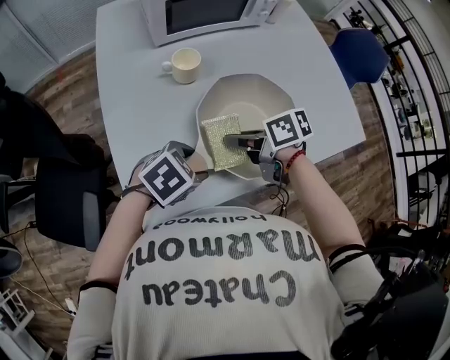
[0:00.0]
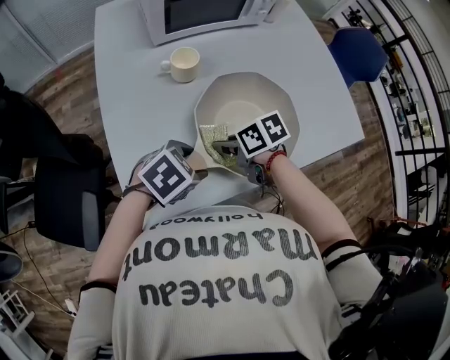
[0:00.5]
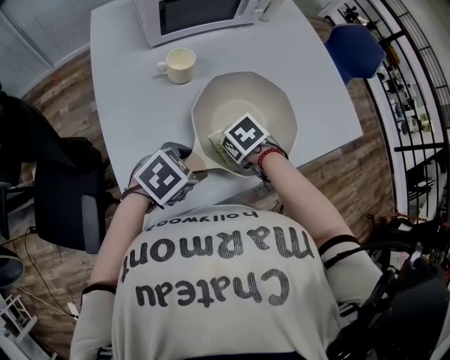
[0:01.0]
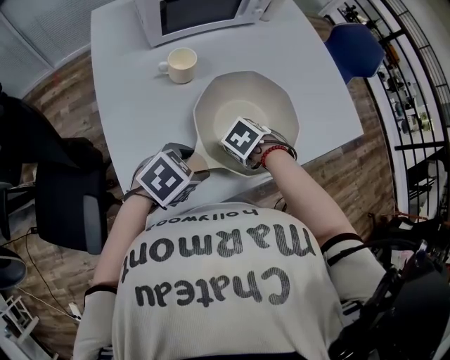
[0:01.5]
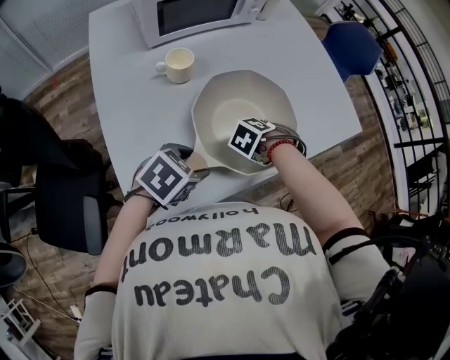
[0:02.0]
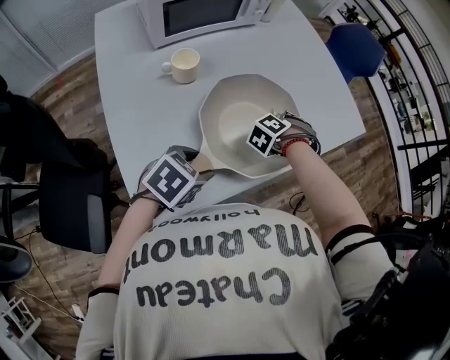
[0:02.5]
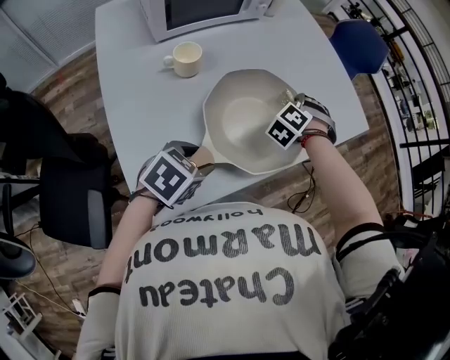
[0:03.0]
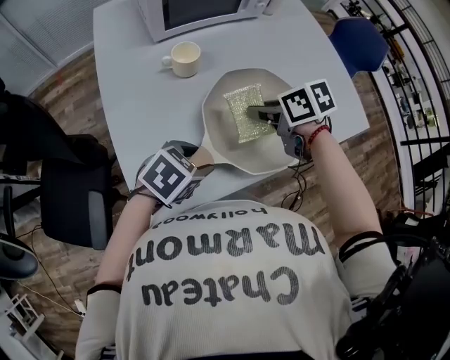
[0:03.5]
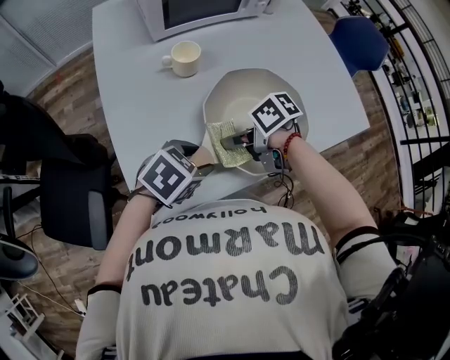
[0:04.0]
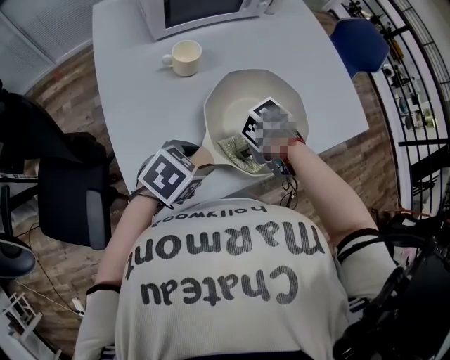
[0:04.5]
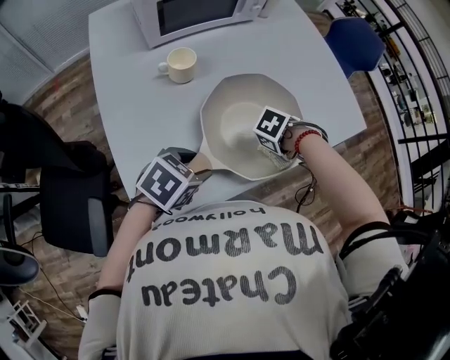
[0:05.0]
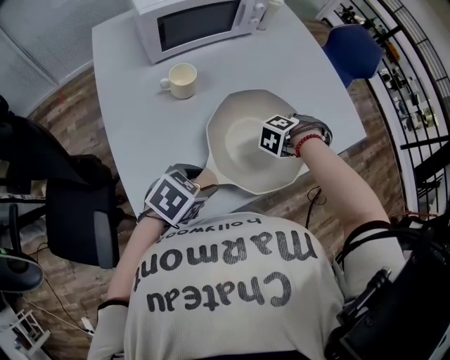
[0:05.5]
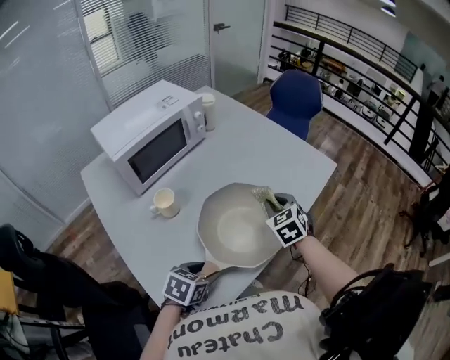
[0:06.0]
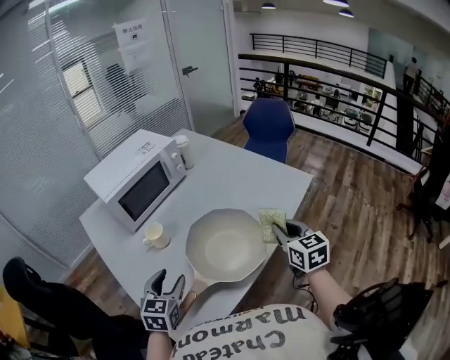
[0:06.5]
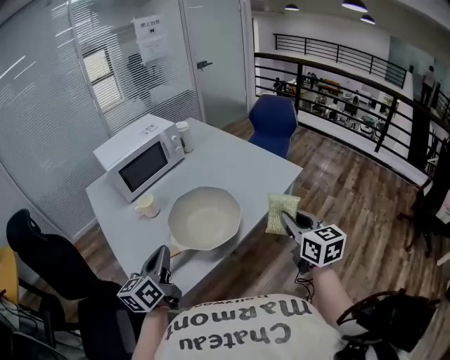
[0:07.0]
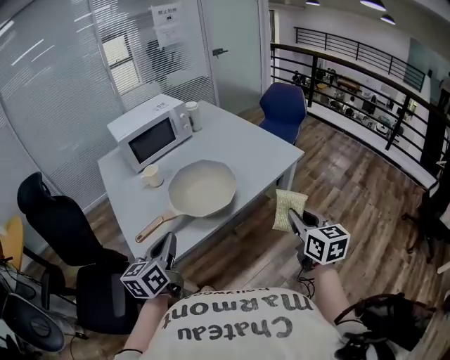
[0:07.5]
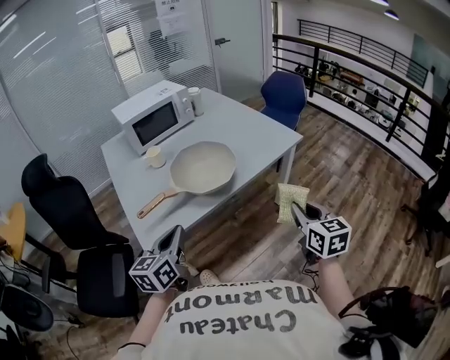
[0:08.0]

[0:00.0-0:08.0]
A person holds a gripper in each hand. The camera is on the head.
6.0 to 8.0 s: The left gripper moves roughly 30 cm, tilts its fingers about 40 degrees upward, and closes its fingers.

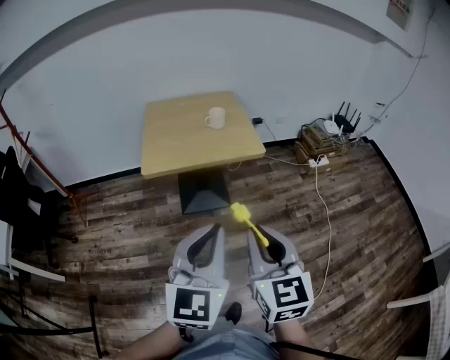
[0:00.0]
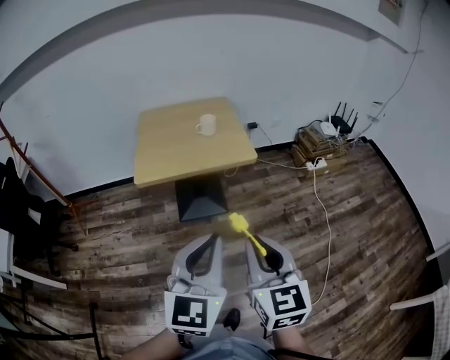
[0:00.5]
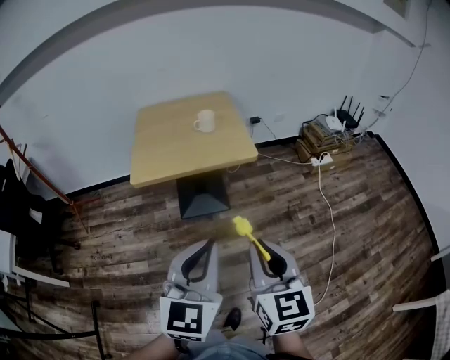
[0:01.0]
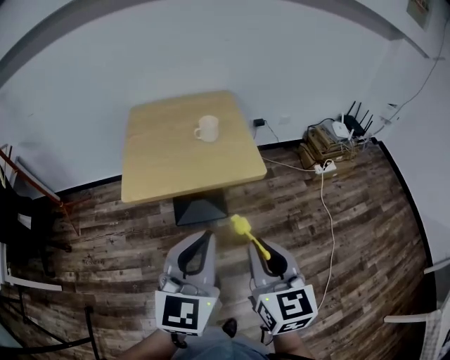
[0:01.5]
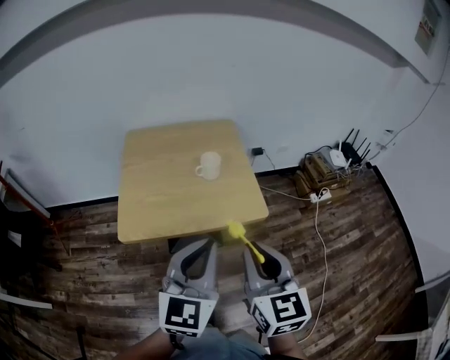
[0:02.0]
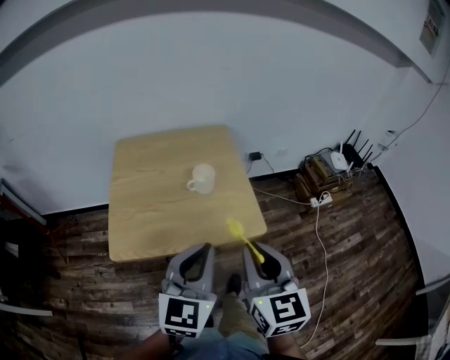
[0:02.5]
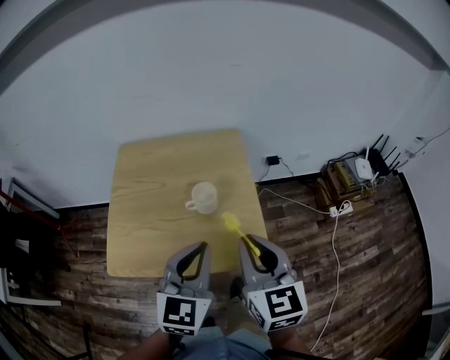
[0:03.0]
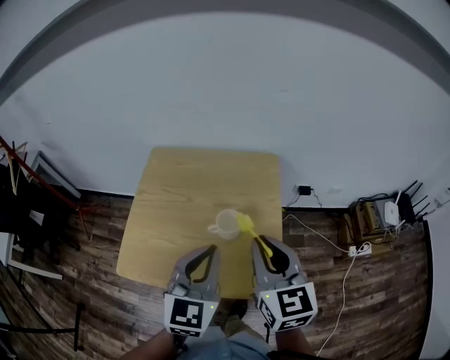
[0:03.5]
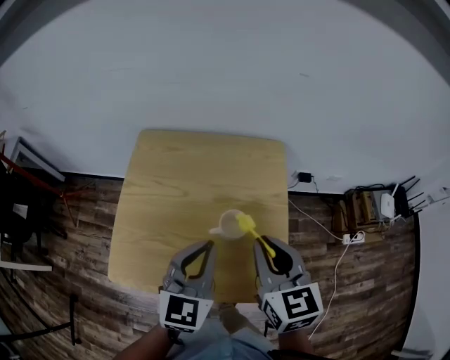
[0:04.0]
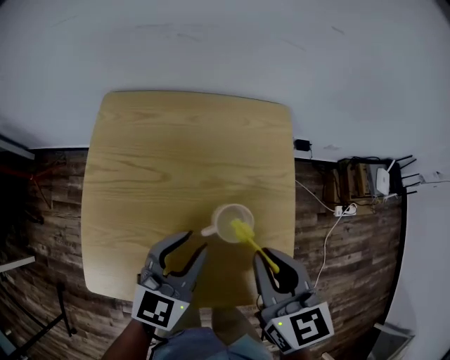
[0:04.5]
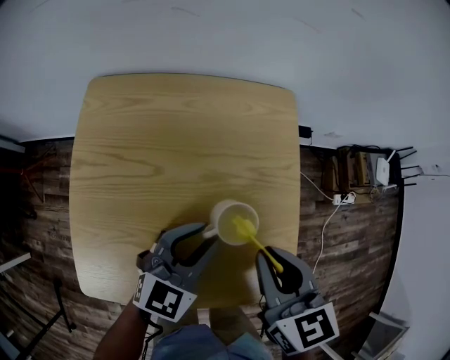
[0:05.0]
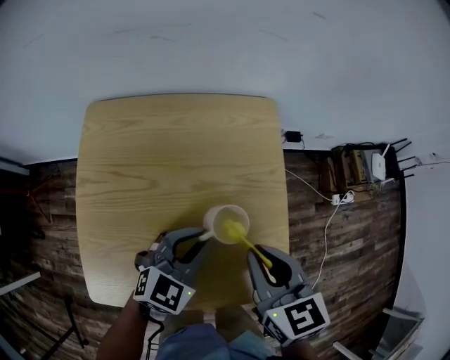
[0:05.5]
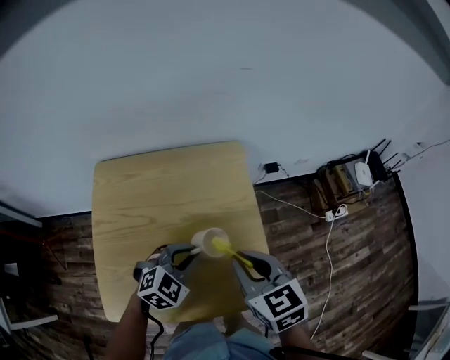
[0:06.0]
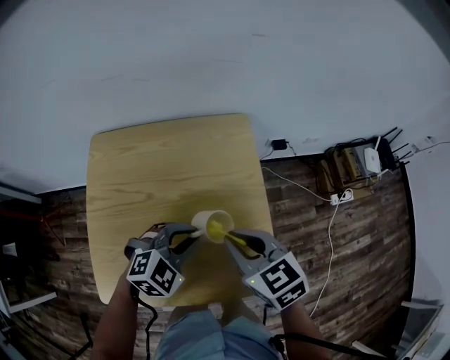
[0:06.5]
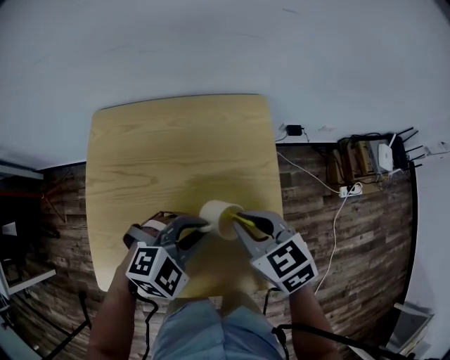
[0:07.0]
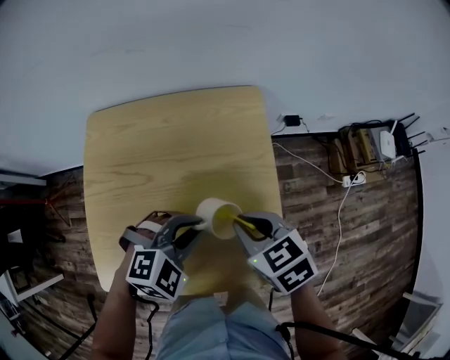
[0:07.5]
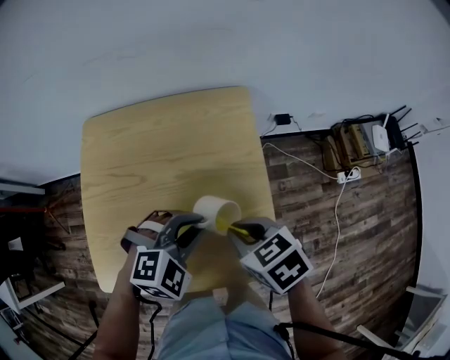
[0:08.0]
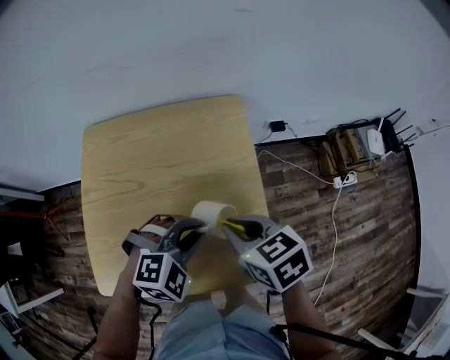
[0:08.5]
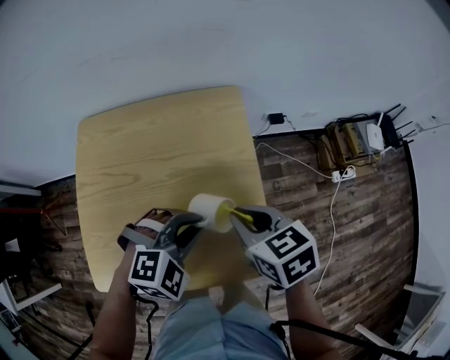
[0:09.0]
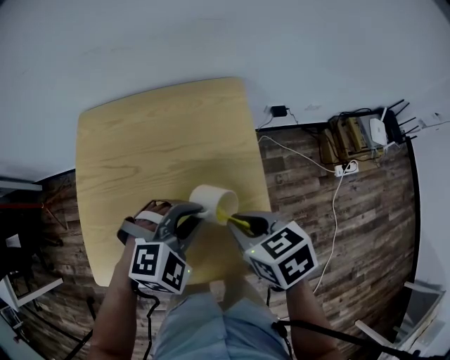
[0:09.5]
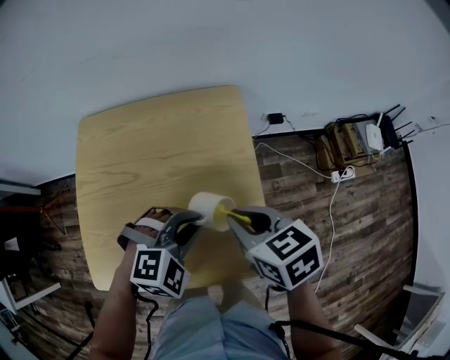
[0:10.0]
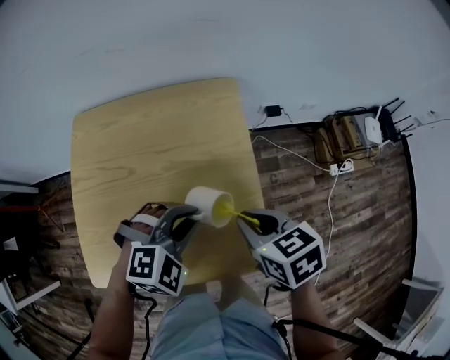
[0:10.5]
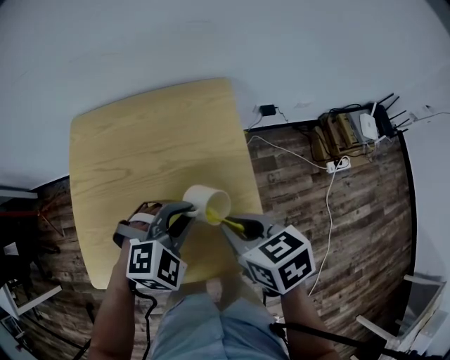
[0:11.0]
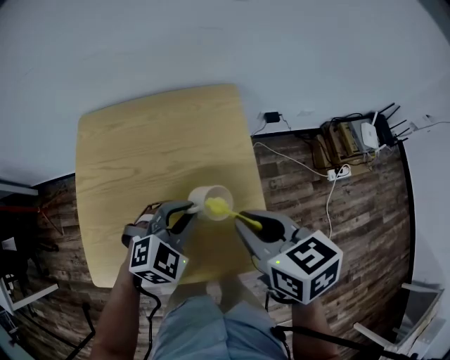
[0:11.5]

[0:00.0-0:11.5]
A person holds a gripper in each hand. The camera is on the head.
0.0 to 2.0 s: The two grippers go roughly 30 cm forward.
2.0 to 4.0 s: Both grippers travel together forward, roughly 35 cm. The right gripper changes its angle by approximately 20 degrees.
4.0 to 6.0 s: The left gripper heads downward, covering some 15 cm, and turns by roughly 50 degrees.
6.0 to 7.5 s: The right gripper heads downward, covering roughly 10 cm, and turns by roughly 20 degrees.
7.5 to 9.5 s: The grippers move only a little.
9.5 to 11.5 s: The right gripper moves upward, roughly 10 cm.

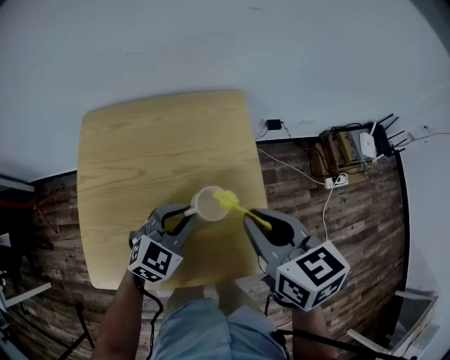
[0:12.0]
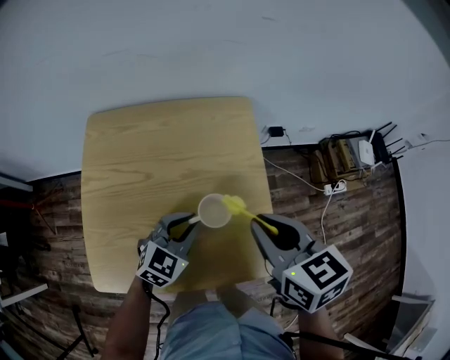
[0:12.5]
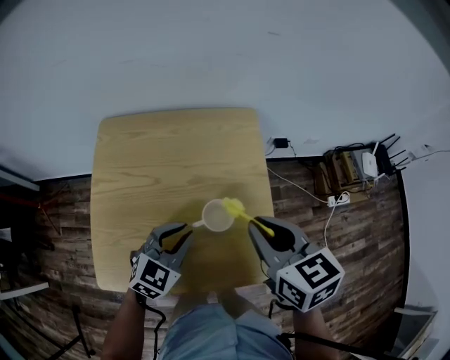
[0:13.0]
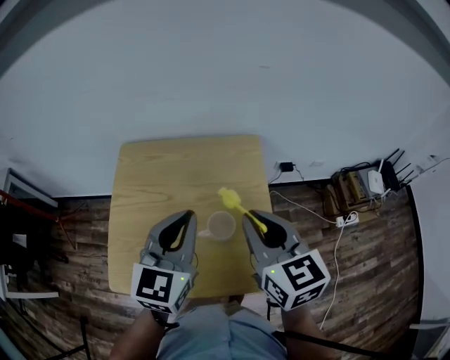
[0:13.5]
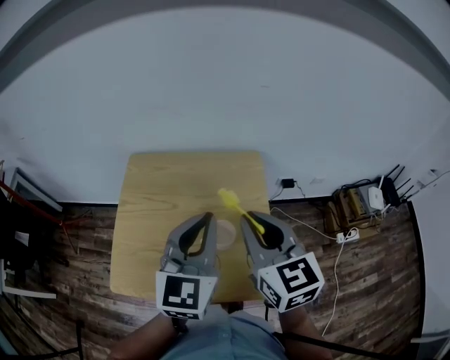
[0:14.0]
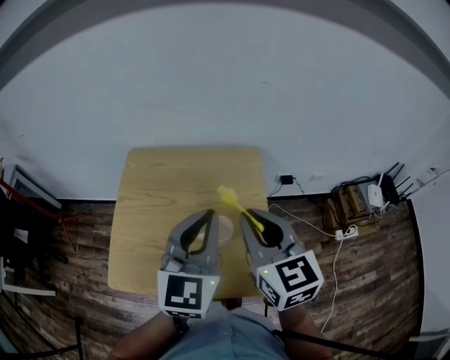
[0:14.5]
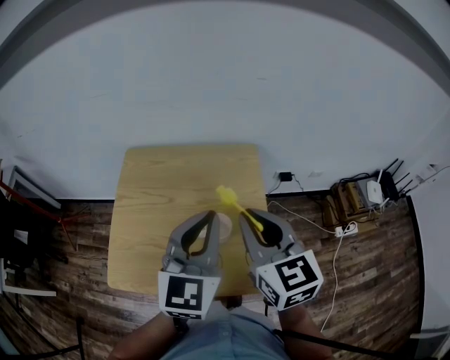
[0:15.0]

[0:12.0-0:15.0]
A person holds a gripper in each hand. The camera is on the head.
12.0 to 13.5 s: The left gripper moves upward, about 20 cm, and changes its angle by about 40 degrees. The right gripper moves upward, approximately 5 cm.
13.5 to 15.0 s: The left gripper heads to the right, covering about 5 cm.

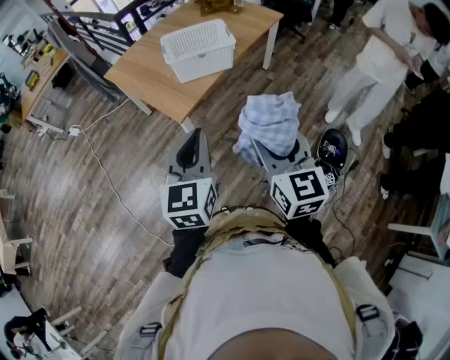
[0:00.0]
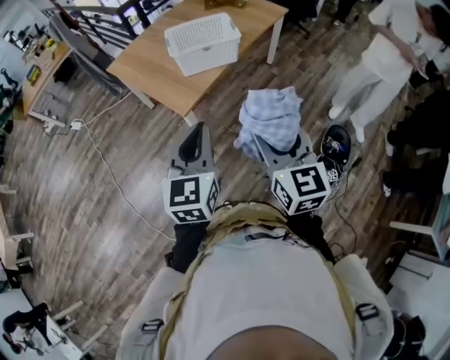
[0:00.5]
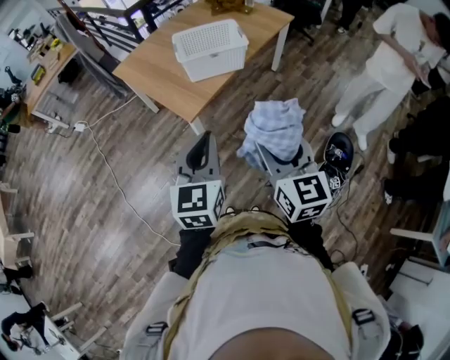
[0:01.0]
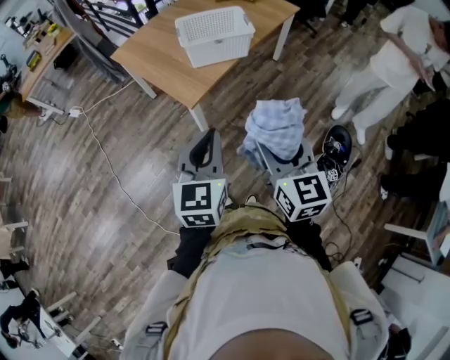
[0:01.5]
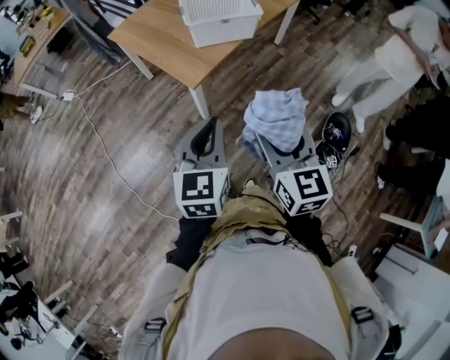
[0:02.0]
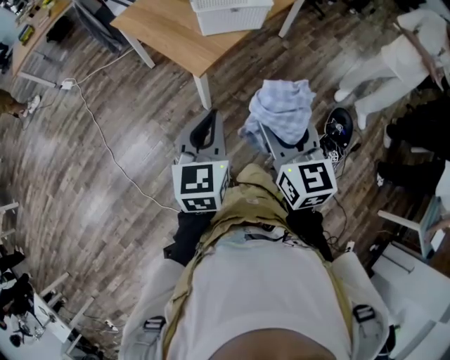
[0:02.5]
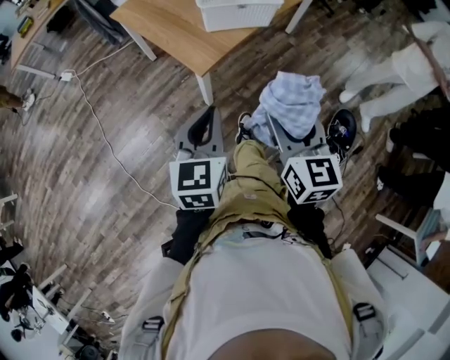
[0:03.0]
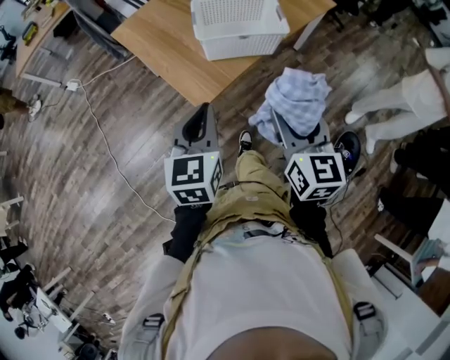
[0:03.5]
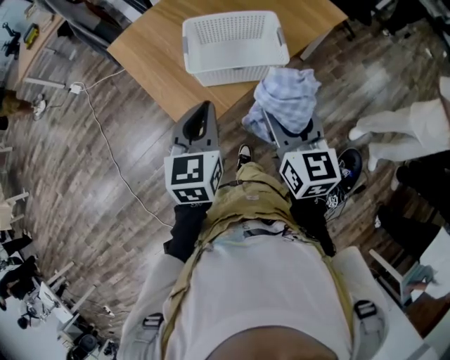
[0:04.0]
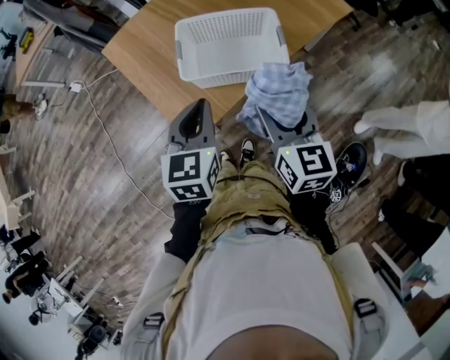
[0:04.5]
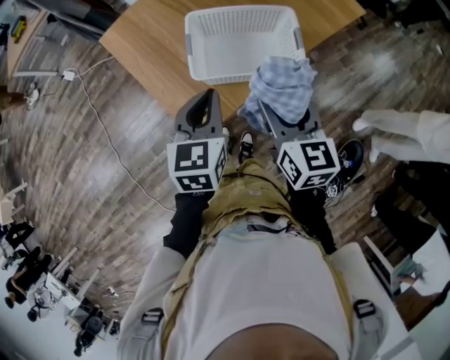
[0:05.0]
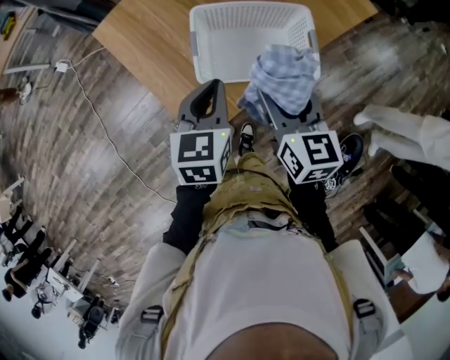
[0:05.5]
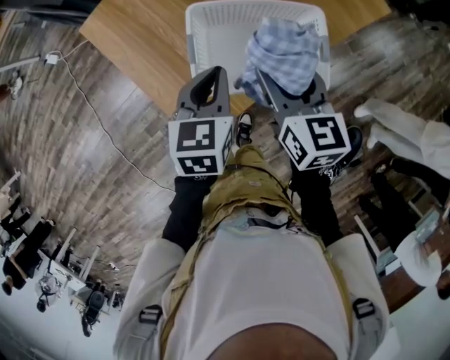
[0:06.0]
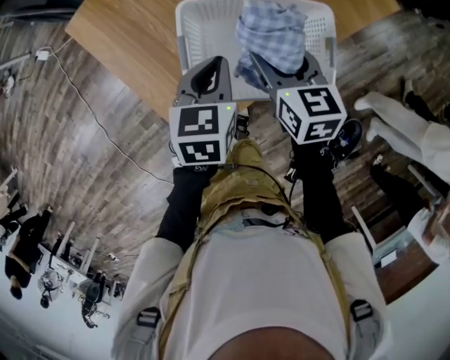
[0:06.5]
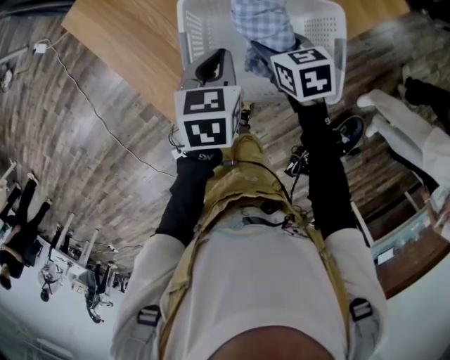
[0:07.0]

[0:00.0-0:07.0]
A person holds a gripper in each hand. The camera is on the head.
0.0 to 2.0 s: The right gripper goes roughly 10 cm to the left, while the left gripper moves to the left and downward, roughly 10 cm.
2.0 to 3.5 s: The grippers both shift forward by approximately 20 cm.
3.5 to 5.0 s: Both grippers move forward, approximately 25 cm.
5.0 to 7.0 s: Both grippers travel together downward and forward, roughly 25 cm. The left gripper swivels about 20 degrees. The right gripper points its fingers roughly 30 degrees further downward.
